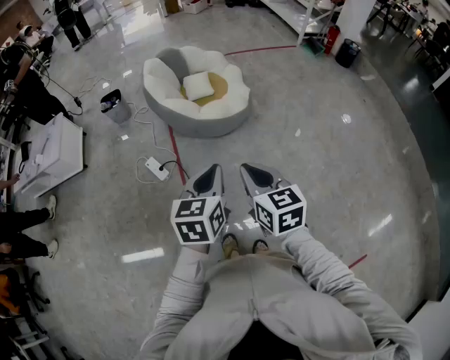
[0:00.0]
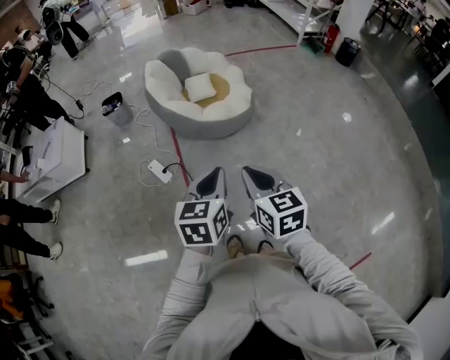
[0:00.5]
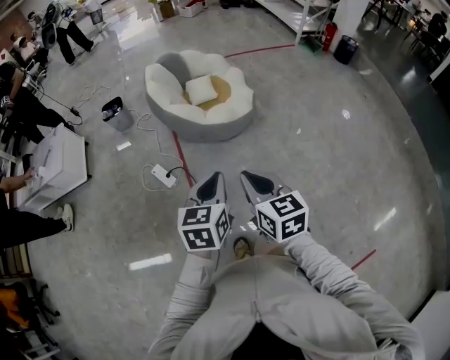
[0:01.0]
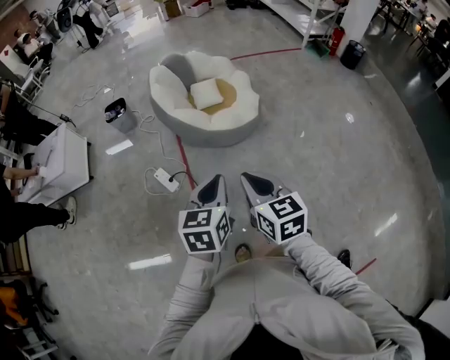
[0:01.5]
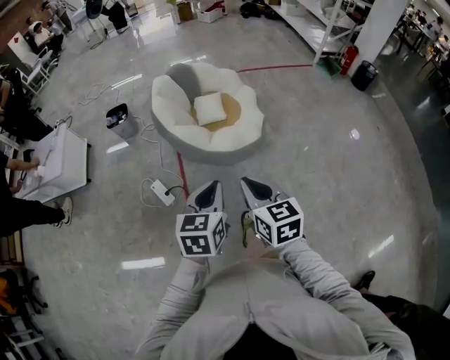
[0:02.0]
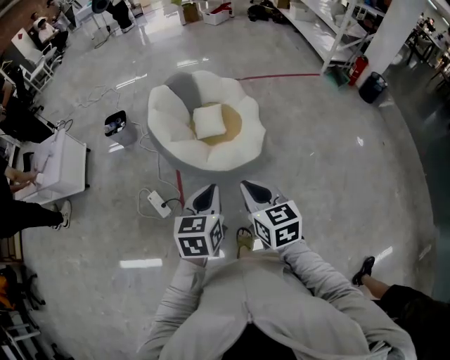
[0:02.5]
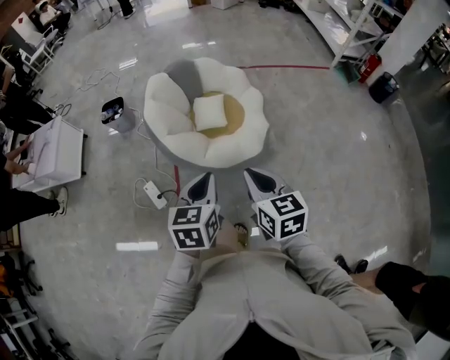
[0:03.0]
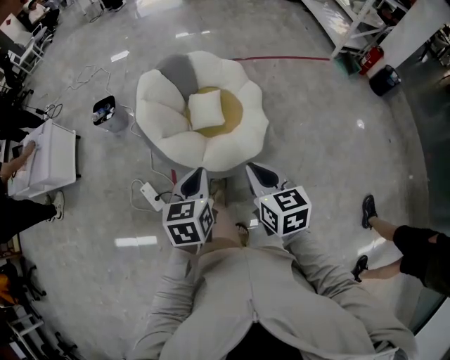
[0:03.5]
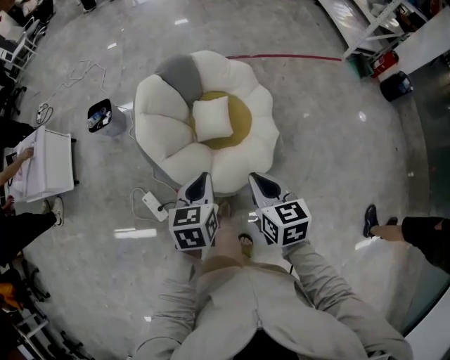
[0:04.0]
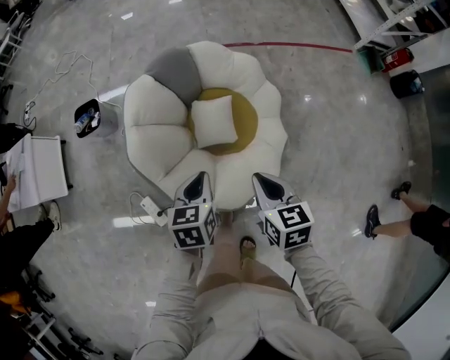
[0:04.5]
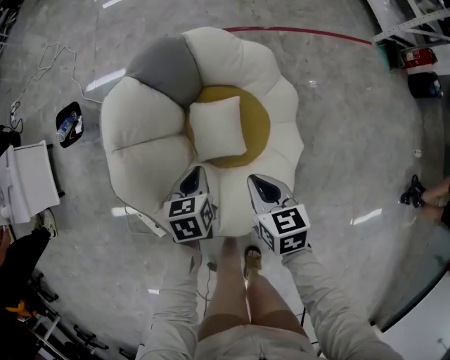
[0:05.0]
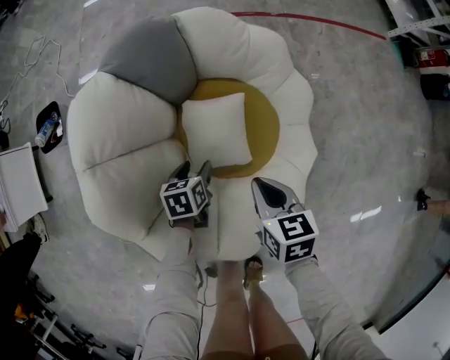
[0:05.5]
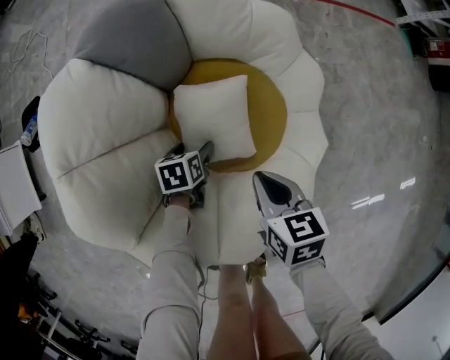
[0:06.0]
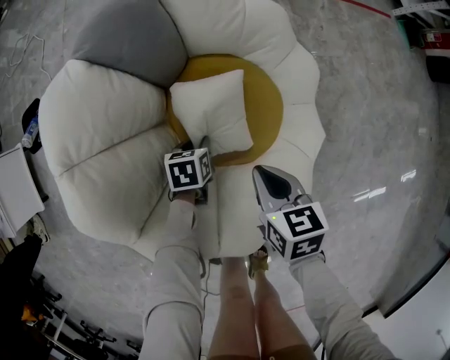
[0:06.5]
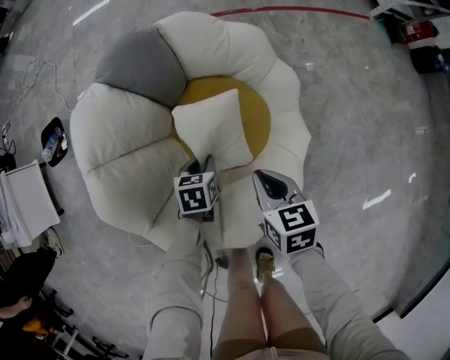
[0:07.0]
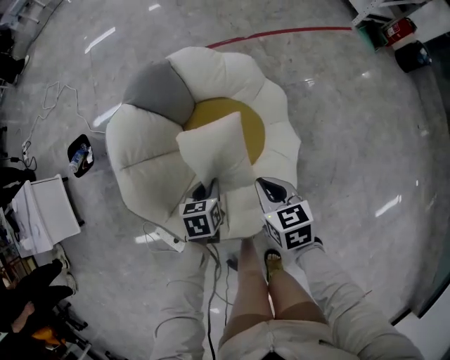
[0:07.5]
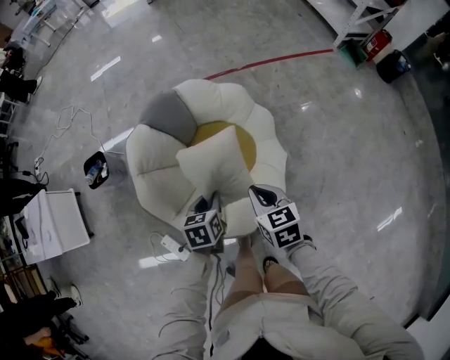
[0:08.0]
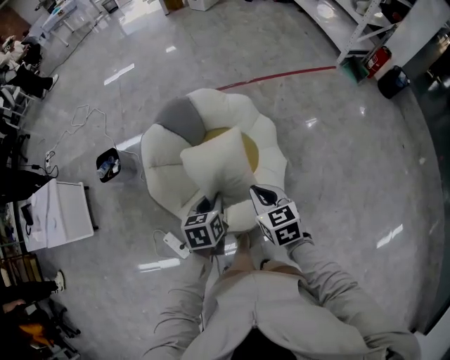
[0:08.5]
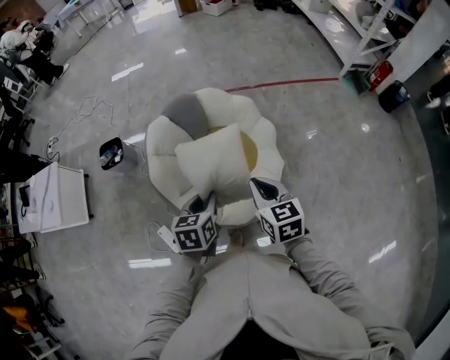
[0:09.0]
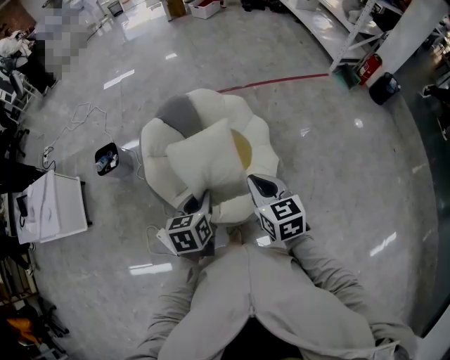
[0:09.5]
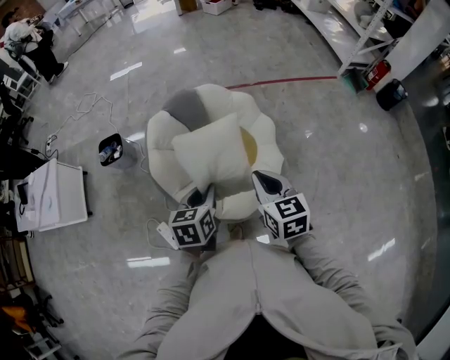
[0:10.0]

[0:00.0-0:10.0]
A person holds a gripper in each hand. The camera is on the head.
0:00.0 to 0:02.0: Both grippers travel together forward, about 15 cm.
0:02.0 to 0:04.0: Both grippers travel together forward, approximately 40 cm.
0:04.0 to 0:06.0: The two grippers go roughly 50 cm downward and forward. The left gripper changes its angle by about 30 degrees, and opens.
0:06.0 to 0:08.0: The grippers both shift upward by some 35 cm. The left gripper closes up.
0:08.0 to 0:10.0: The two grippers go about 15 cm upward and backward.

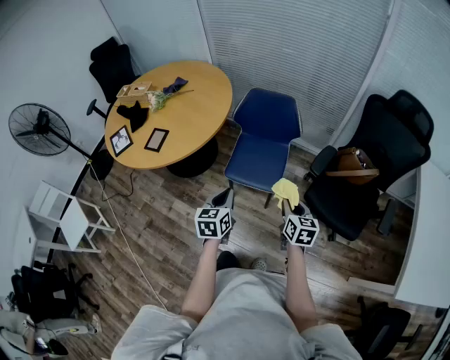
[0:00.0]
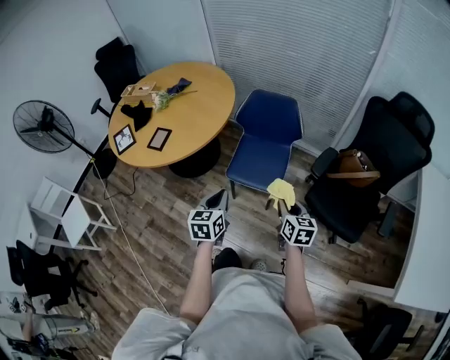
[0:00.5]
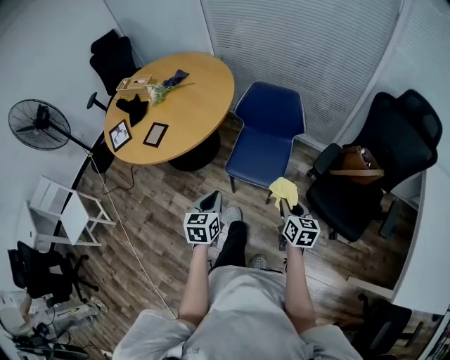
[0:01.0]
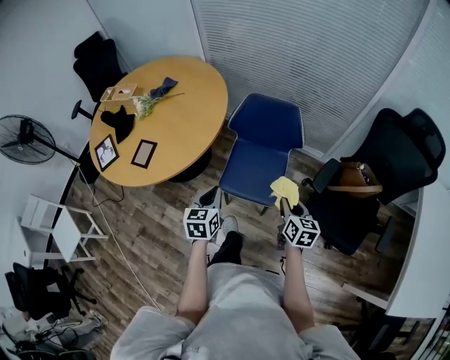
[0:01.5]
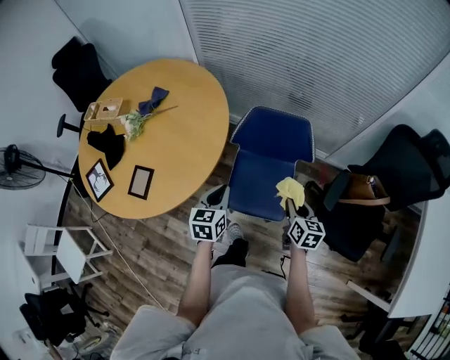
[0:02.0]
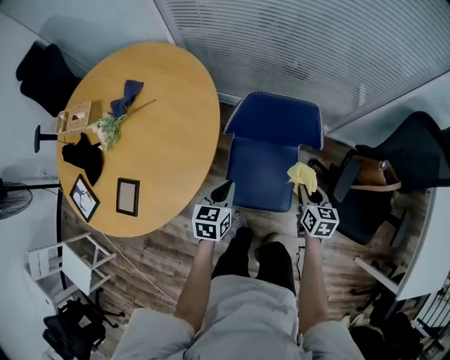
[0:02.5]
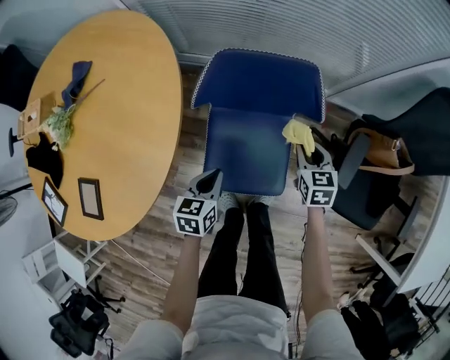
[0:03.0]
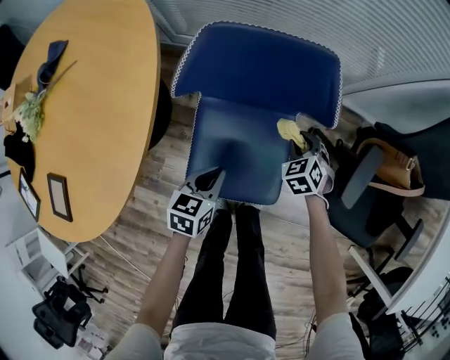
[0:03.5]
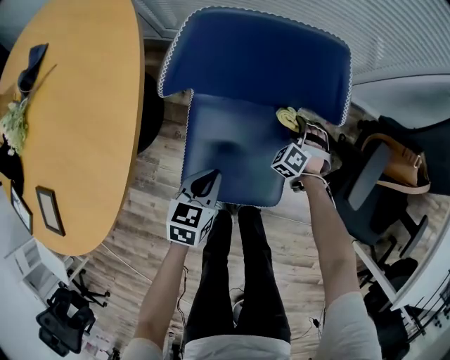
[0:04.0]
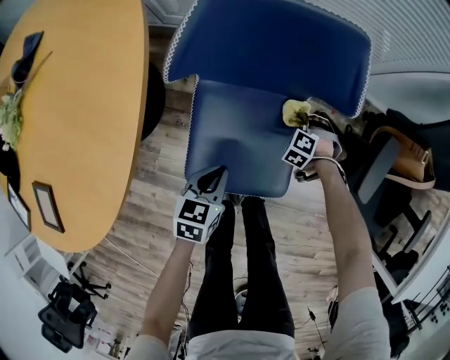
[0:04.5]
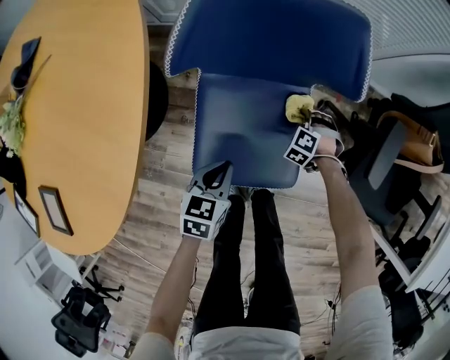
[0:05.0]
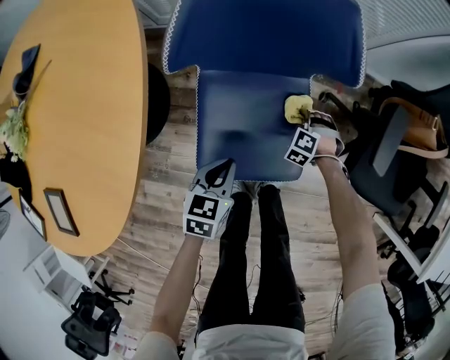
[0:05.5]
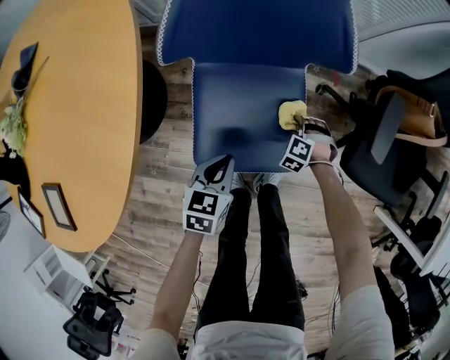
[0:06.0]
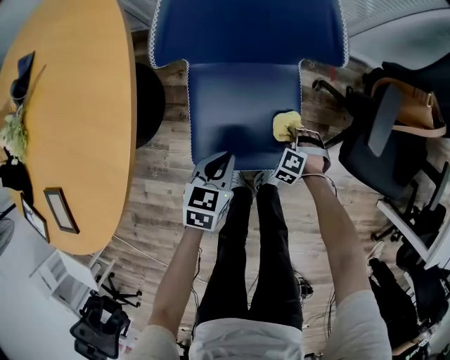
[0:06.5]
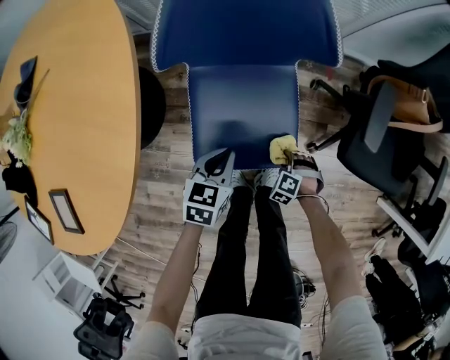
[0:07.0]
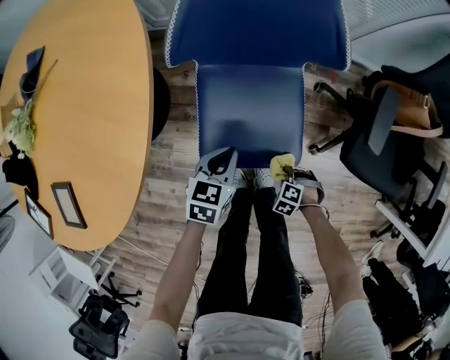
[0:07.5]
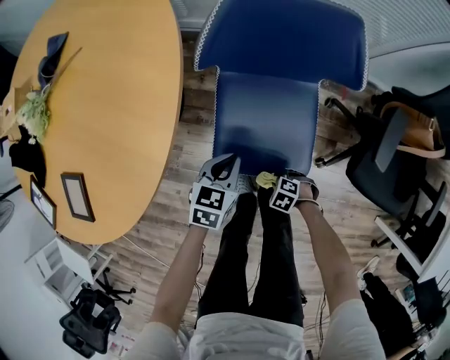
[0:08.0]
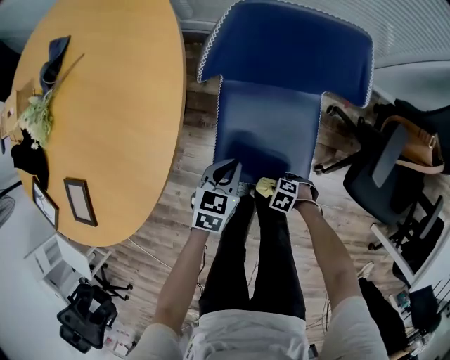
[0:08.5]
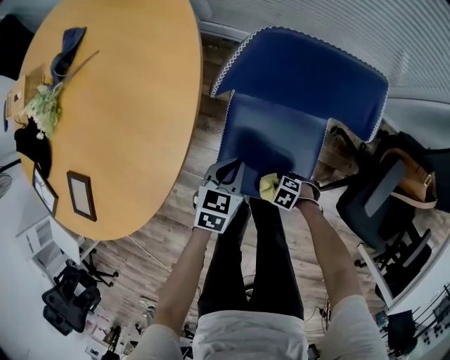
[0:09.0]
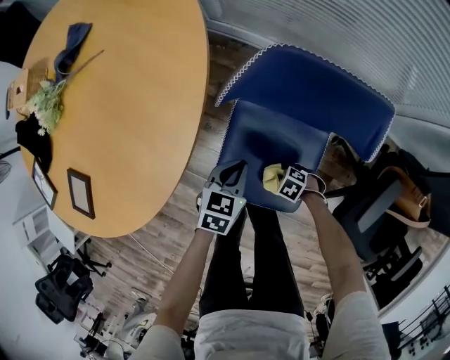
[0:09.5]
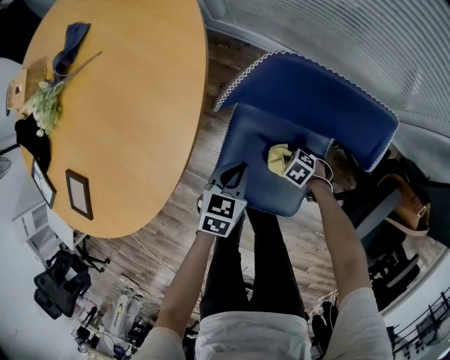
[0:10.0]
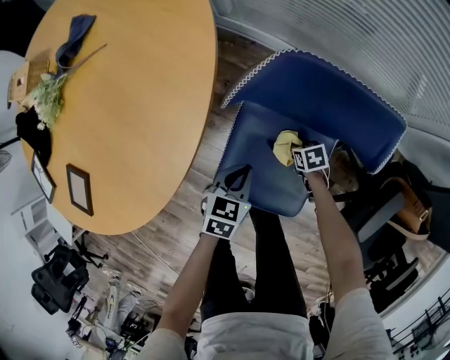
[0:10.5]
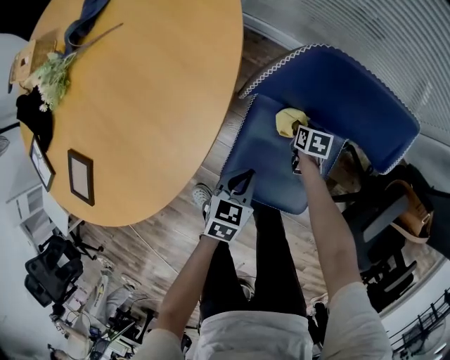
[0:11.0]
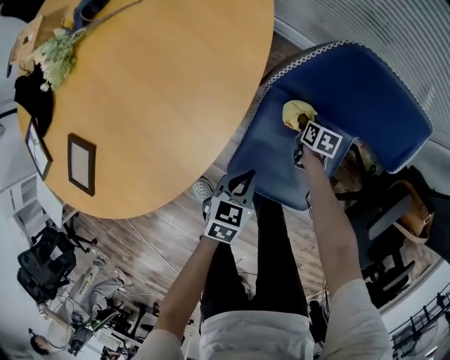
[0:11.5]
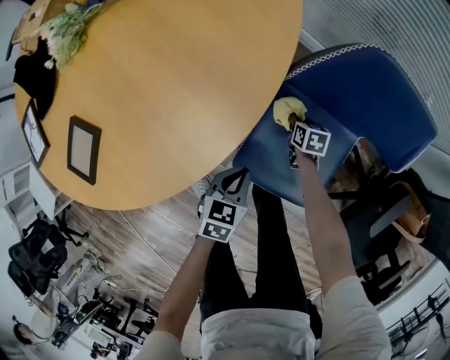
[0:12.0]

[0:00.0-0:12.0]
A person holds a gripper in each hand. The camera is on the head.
0:00.0 to 0:02.0: Both grippers travel together forward, about 25 cm.
0:02.0 to 0:04.0: Both grippers travel together downward, some 35 cm. The left gripper changes its angle by about 20 degrees. The right gripper twists roughly 80 degrees counterclockwise, seen from behind.
0:04.0 to 0:06.0: The right gripper is displaced backward by some 15 cm, while the left gripper shifts roughly 5 cm backward.
0:06.0 to 0:08.0: The left gripper shifts by approximately 5 cm; the right gripper ends up about 20 cm from where it was, and rotates about 40 degrees.
0:08.0 to 0:10.0: The left gripper changes place by about 10 cm; the right gripper changes place by approximately 25 cm.
0:10.0 to 0:12.0: The left gripper ends up roughly 15 cm from where it was. Meanwhile the right gripper shifts by approximately 15 cm, and rotates around the line of its fingers by about 50 degrees, clockwise from behind.

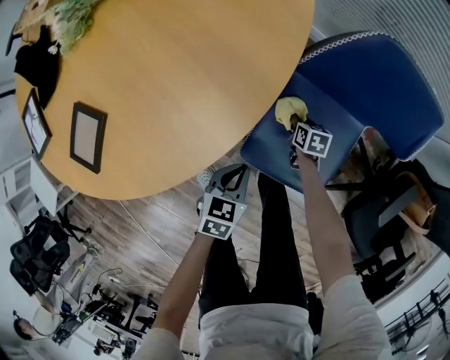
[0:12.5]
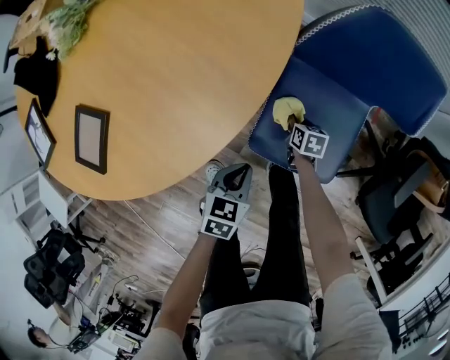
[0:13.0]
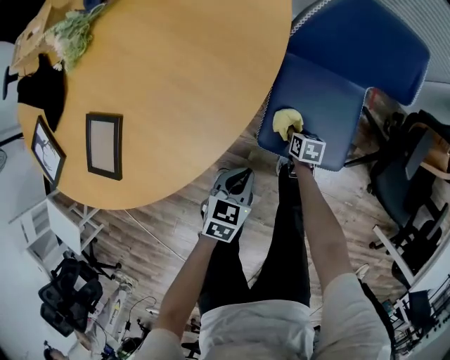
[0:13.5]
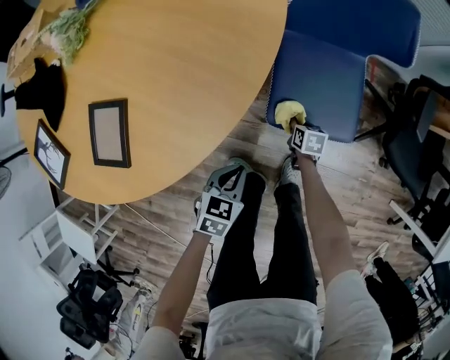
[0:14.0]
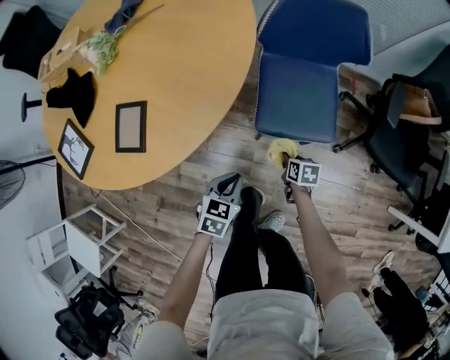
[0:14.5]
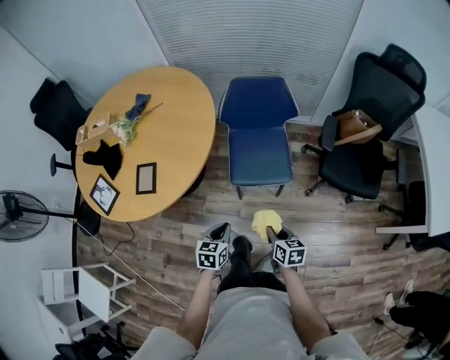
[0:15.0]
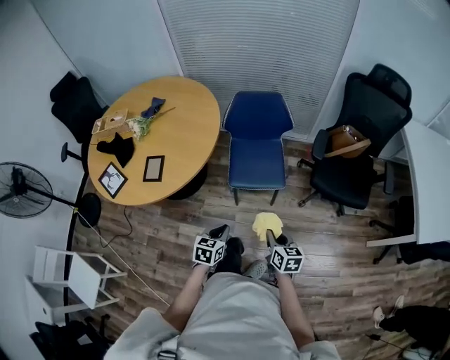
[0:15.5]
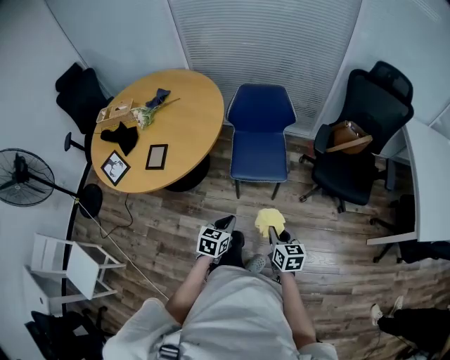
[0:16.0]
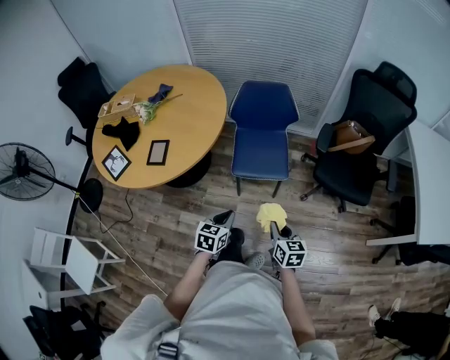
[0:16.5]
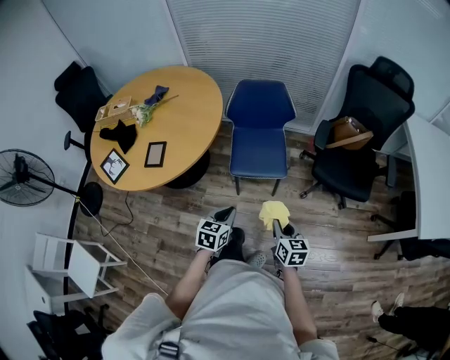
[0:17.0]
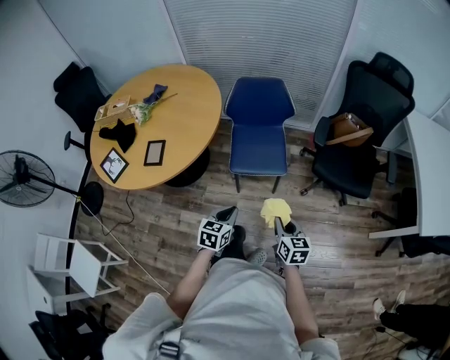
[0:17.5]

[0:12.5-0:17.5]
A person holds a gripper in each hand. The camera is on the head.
0:12.5 to 0:15.0: The left gripper shifts about 35 cm backward and upward. Meanwhile the right gripper moves backward and upward, roughly 60 cm, and swivels roughly 30 degrees.
0:15.0 to 0:17.5: The left gripper goes about 10 cm to the right, upward and backward, while the right gripper goes roughly 15 cm upward, to the right and backward.
